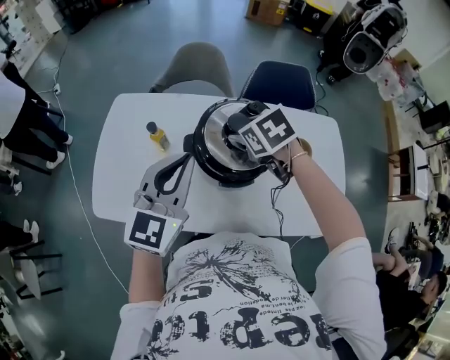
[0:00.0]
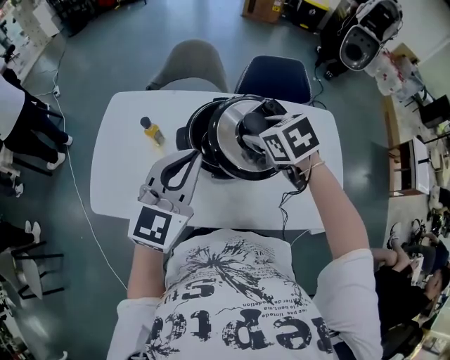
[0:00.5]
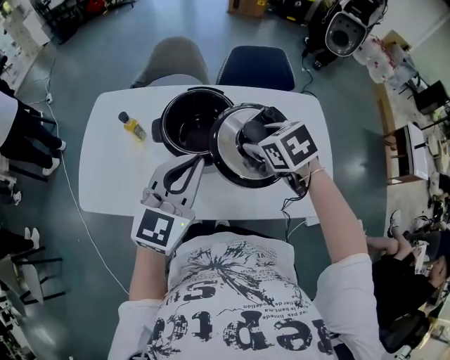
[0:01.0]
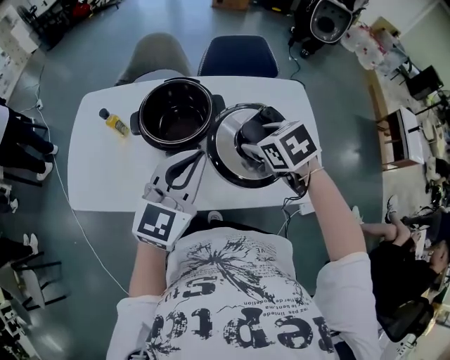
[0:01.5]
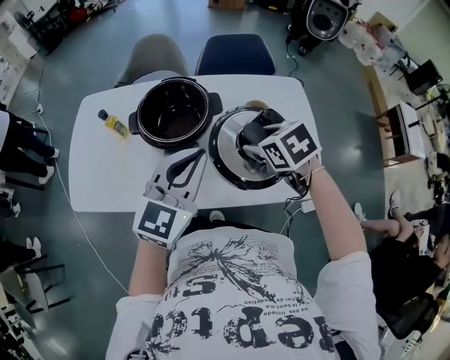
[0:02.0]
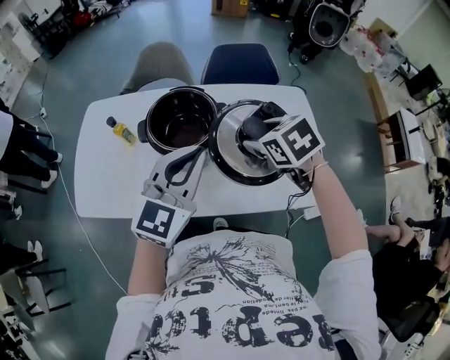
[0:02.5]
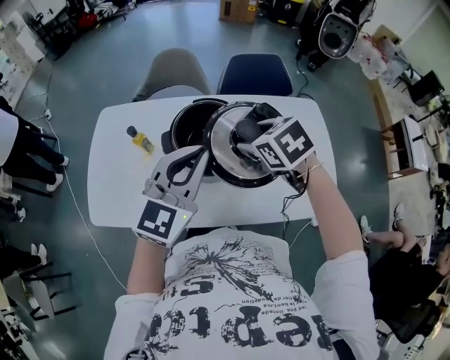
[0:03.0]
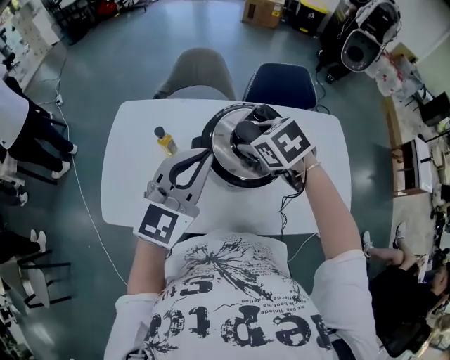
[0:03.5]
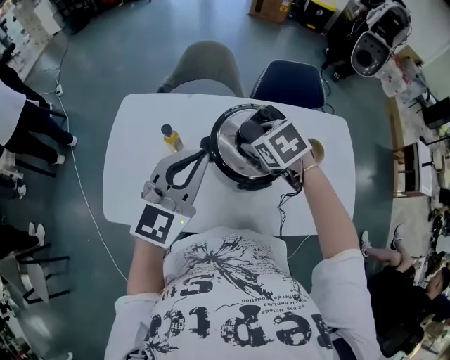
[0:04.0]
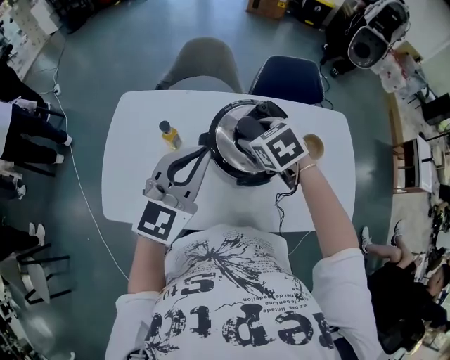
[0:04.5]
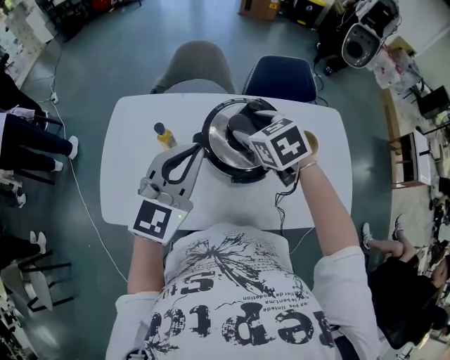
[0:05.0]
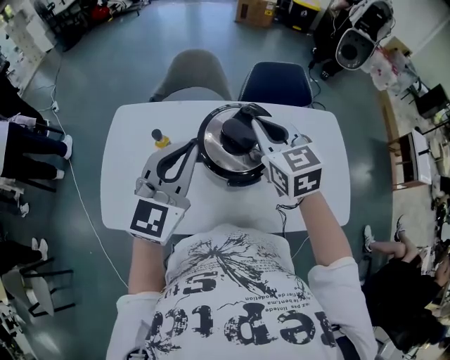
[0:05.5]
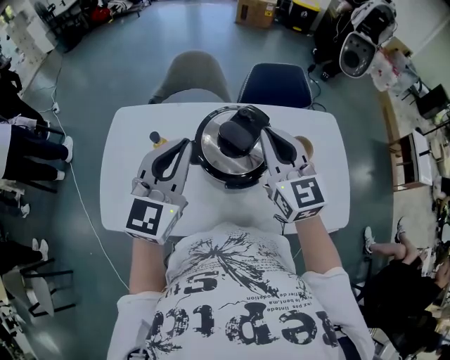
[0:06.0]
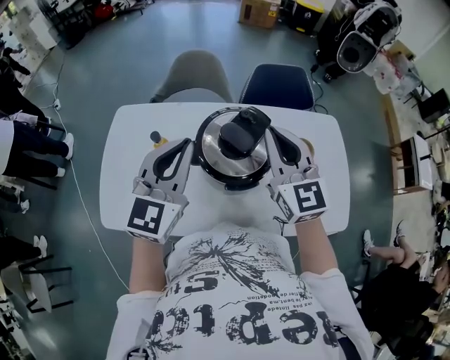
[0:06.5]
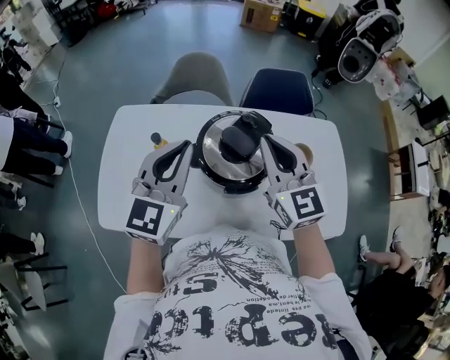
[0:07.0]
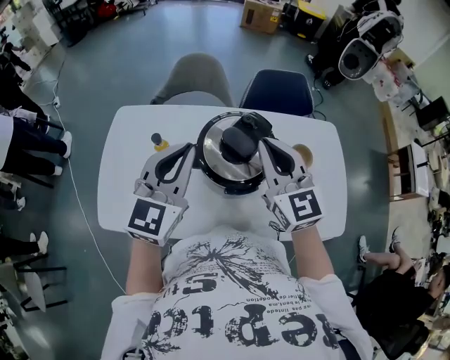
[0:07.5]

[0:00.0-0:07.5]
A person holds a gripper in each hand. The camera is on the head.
0:00.0 to 0:02.0: The two grippers go about 25 cm to the right and backward.
0:02.0 to 0:04.0: Both grippers move to the left and forward, some 30 cm.
0:04.0 to 0:05.5: The right gripper goes approximately 10 cm upward, angles its fingers upward, by roughly 40 degrees, and closes.
0:05.5 to 0:07.5: The grippers make only small movements.

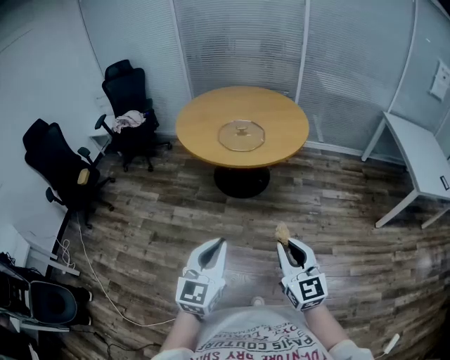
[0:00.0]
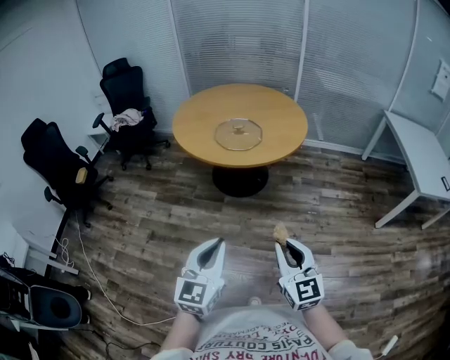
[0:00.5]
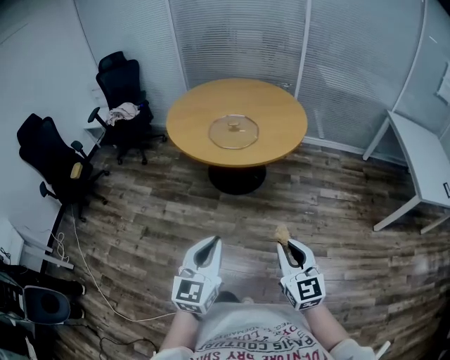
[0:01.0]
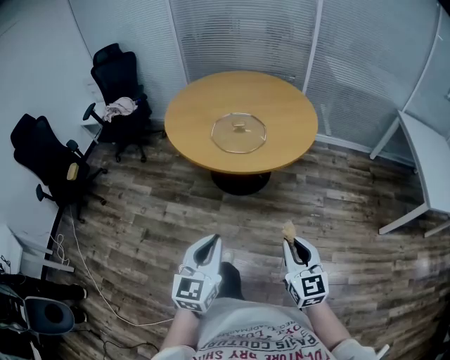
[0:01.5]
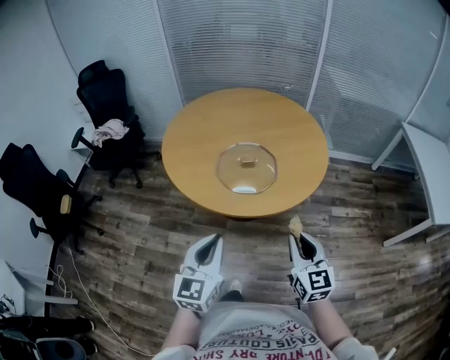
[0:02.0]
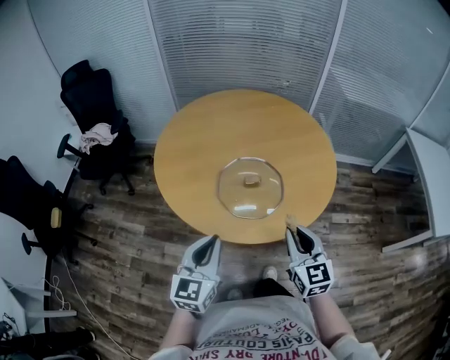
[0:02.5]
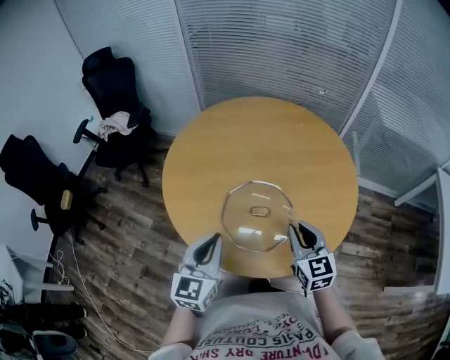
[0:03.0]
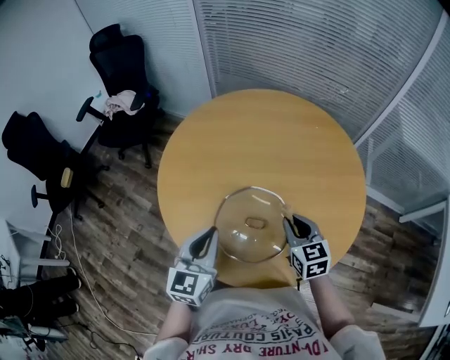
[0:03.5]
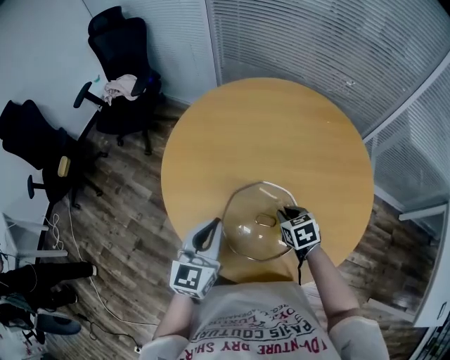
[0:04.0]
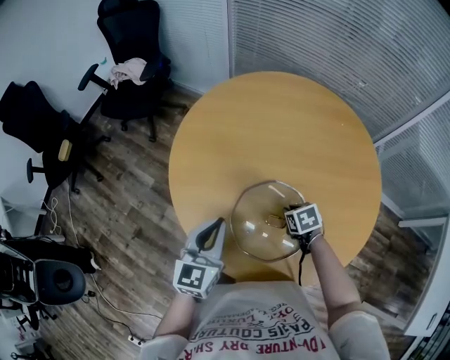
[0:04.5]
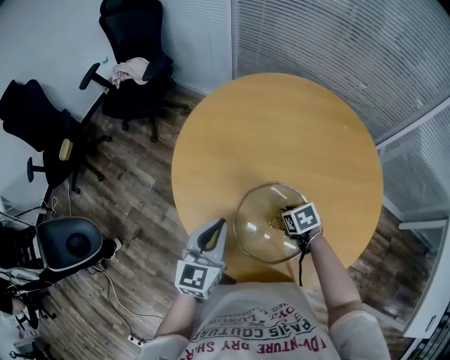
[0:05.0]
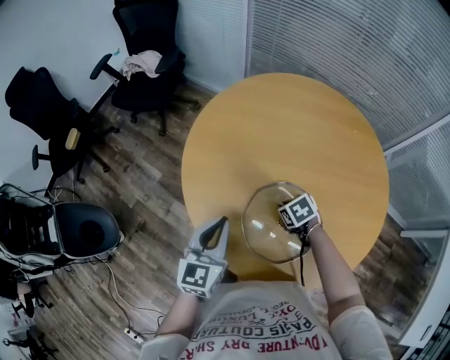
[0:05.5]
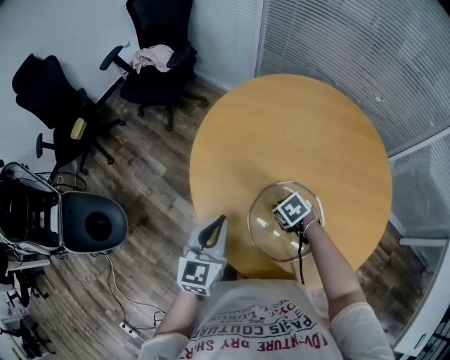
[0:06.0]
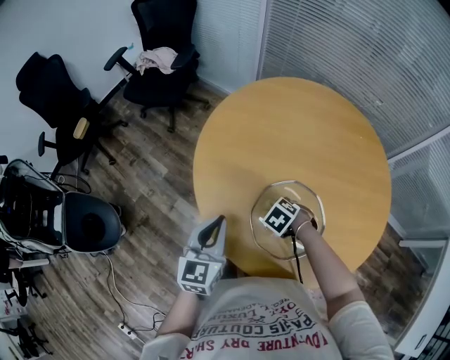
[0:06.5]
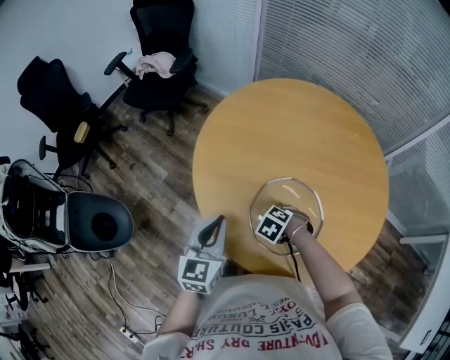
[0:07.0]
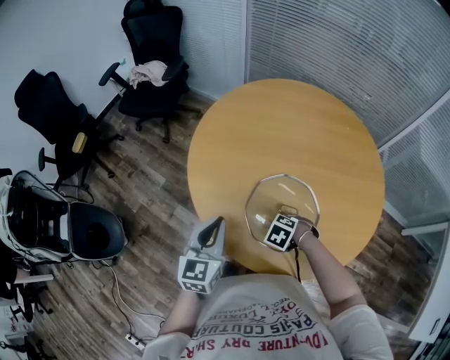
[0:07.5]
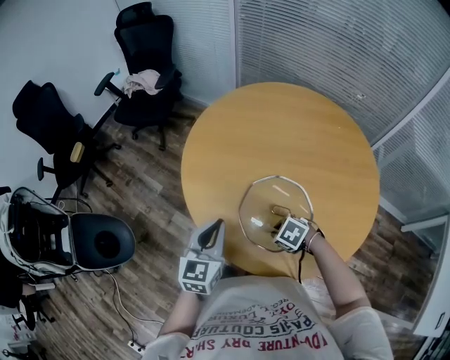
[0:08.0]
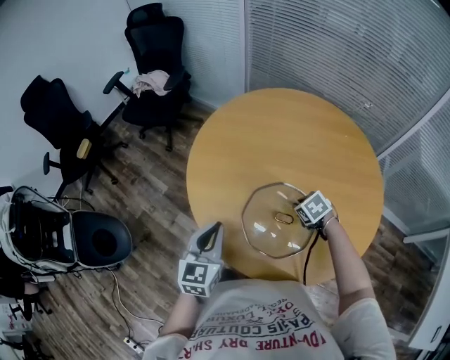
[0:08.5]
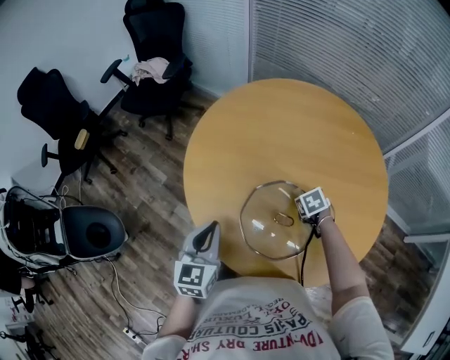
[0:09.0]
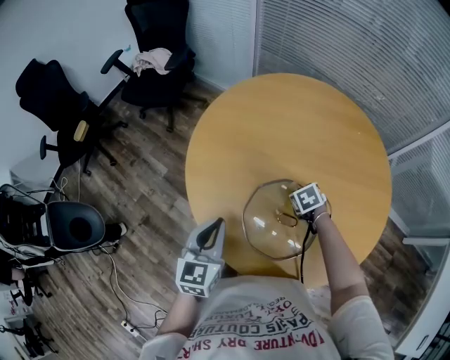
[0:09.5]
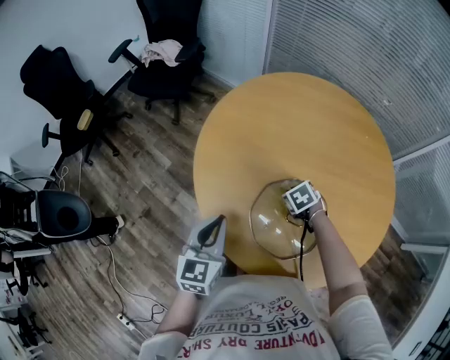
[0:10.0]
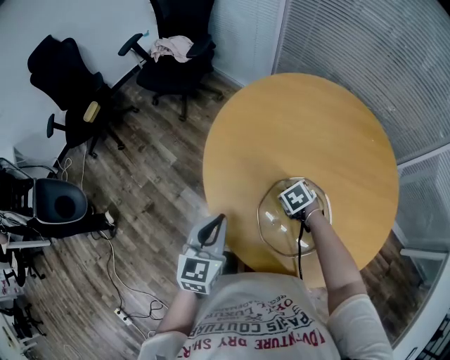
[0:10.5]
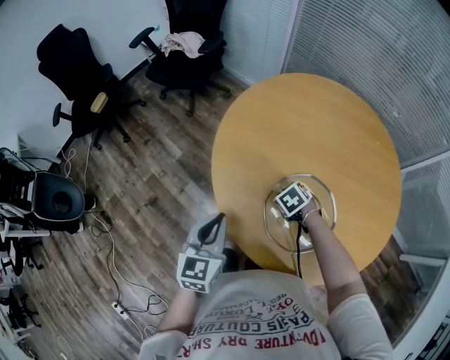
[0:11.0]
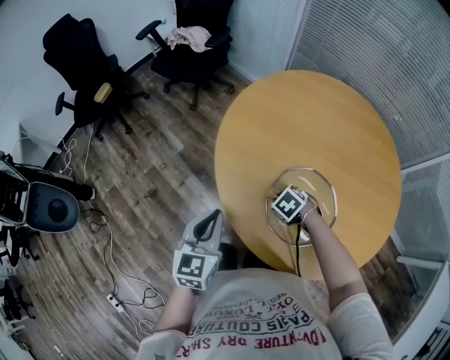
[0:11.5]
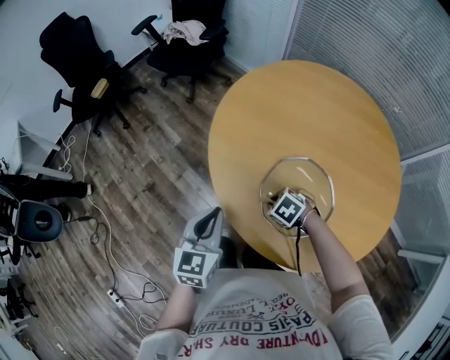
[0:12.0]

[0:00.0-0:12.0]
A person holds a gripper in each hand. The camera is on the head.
0:00.0 to 0:02.0: Both grippers travel together forward, roughly 40 cm.
0:02.0 to 0:04.0: Both grippers are carried approximately 50 cm. The right gripper points its fingers about 40 degrees further downward.
0:04.0 to 0:06.0: The right gripper moves roughly 15 cm, and swivels roughly 30 degrees. Meanwhile the left gripper ends up roughly 10 cm from where it was.
0:06.0 to 0:08.0: The right gripper changes place by about 10 cm.
0:08.0 to 0:10.0: The right gripper ends up about 15 cm from where it was, and swivels about 20 degrees.
0:10.0 to 0:12.0: The left gripper ends up approximately 10 cm from where it was, while the right gripper moves roughly 20 cm, and turns by about 30 degrees.

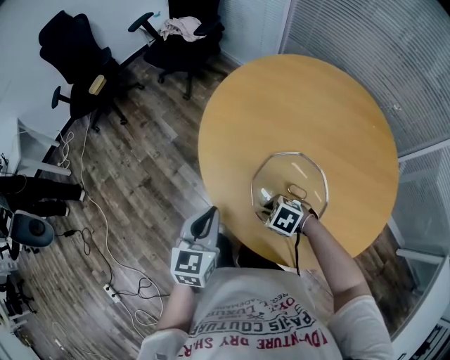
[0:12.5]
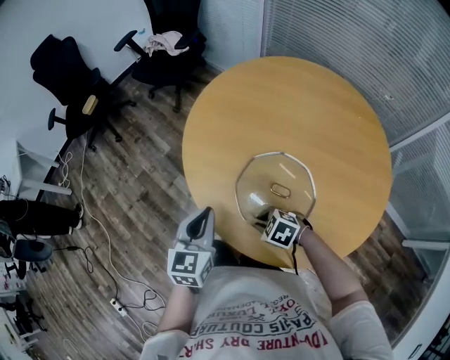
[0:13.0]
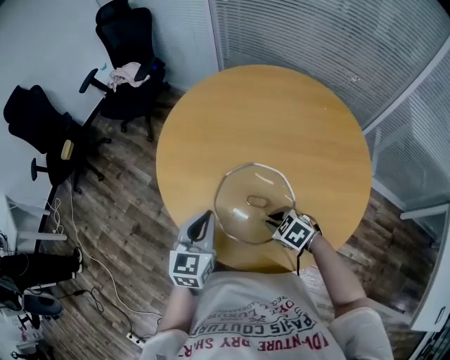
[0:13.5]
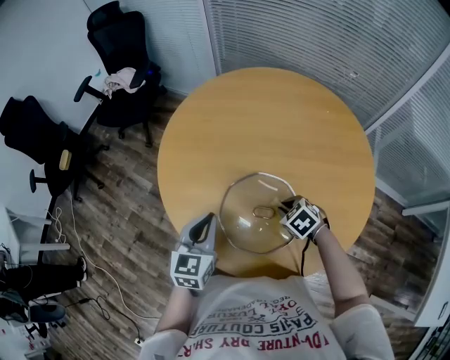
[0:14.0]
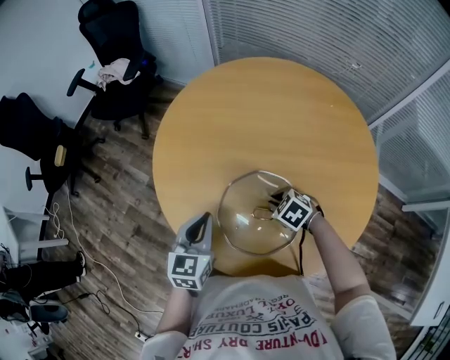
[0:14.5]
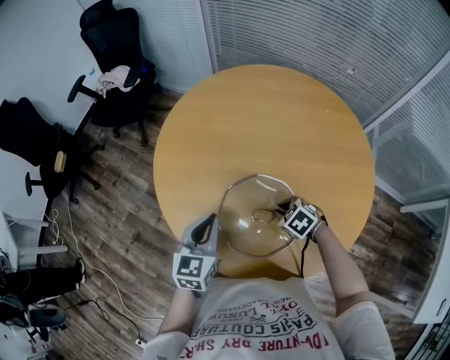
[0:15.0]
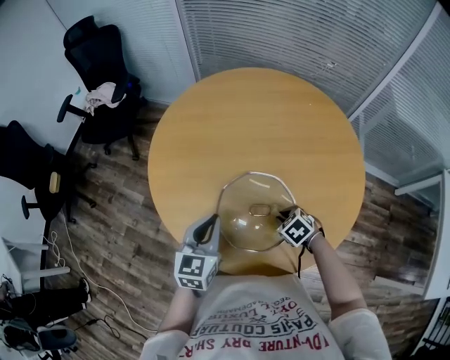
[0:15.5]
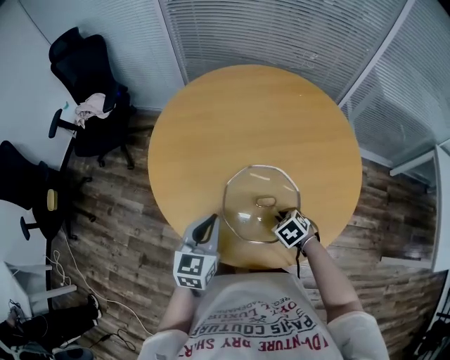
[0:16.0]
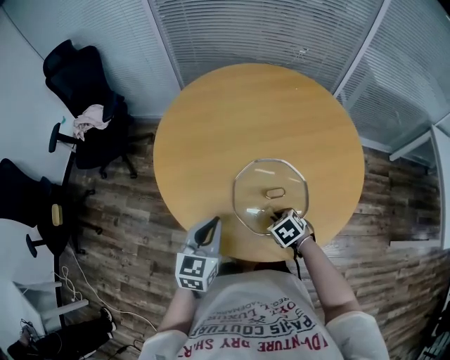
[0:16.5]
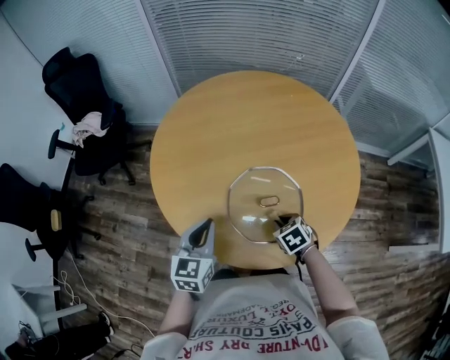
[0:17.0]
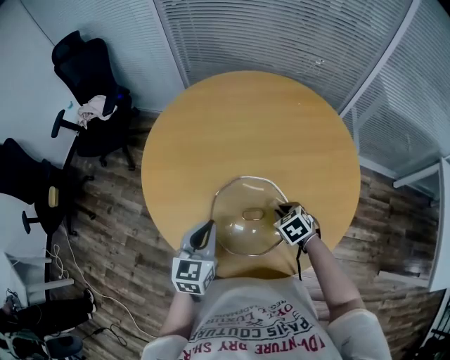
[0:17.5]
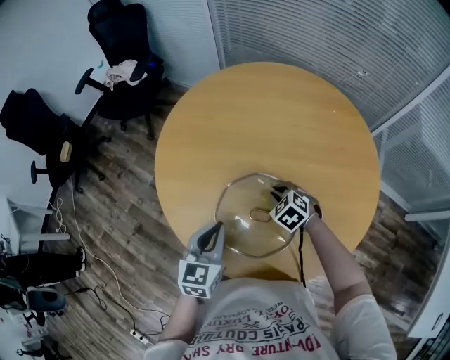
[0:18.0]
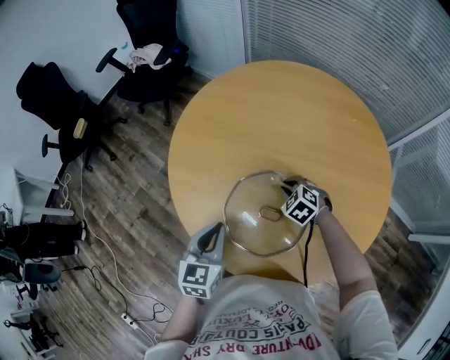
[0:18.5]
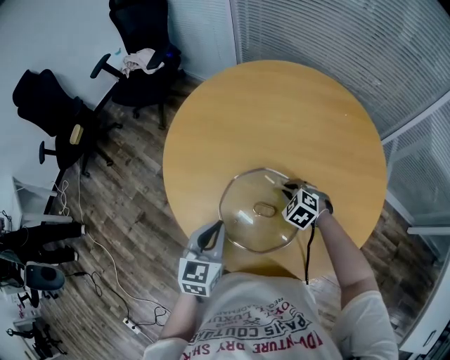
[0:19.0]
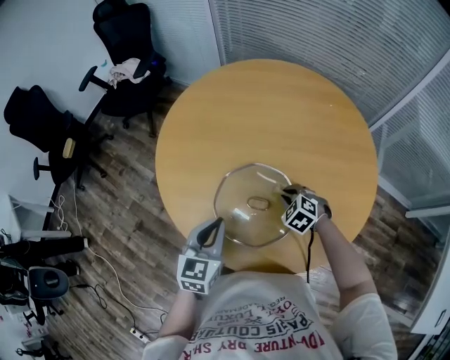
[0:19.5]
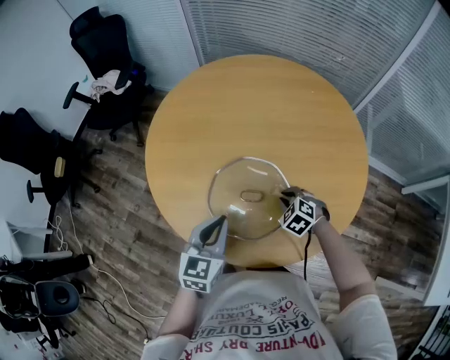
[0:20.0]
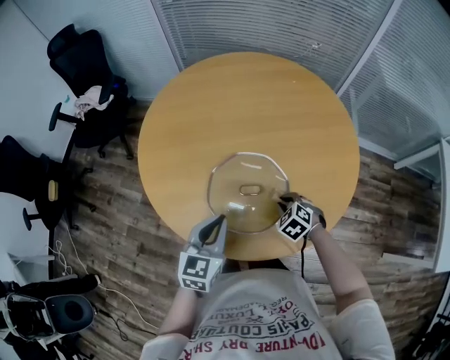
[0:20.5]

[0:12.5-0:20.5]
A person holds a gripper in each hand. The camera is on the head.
0:12.5 to 0:14.5: The left gripper changes place by approximately 15 cm; the right gripper moves approximately 20 cm, and rotates some 30 degrees.
0:14.5 to 0:16.5: The left gripper changes place by approximately 5 cm, and rotates approximately 20 degrees; the right gripper changes place by some 15 cm, and rotates approximately 40 degrees.
0:16.5 to 0:18.5: The left gripper changes place by some 10 cm, and turns by approximately 30 degrees, while the right gripper shifts by some 20 cm, and rolls counterclockwise, seen from behind, by some 50 degrees.
0:18.5 to 0:20.5: The right gripper moves about 15 cm, and changes its angle by approximately 30 degrees. The left gripper changes its angle by about 30 degrees.
